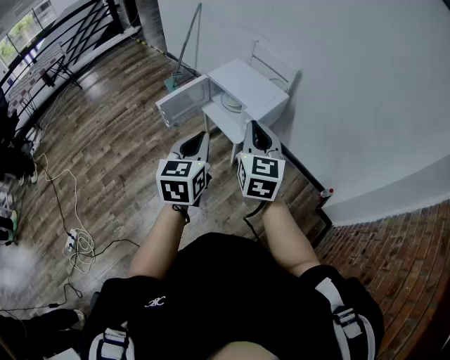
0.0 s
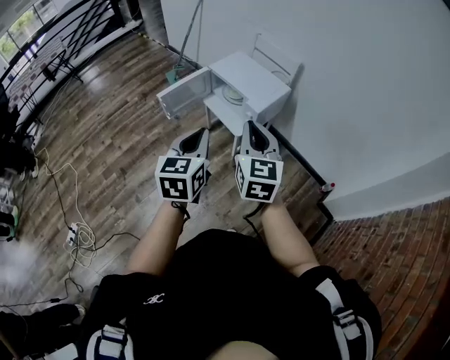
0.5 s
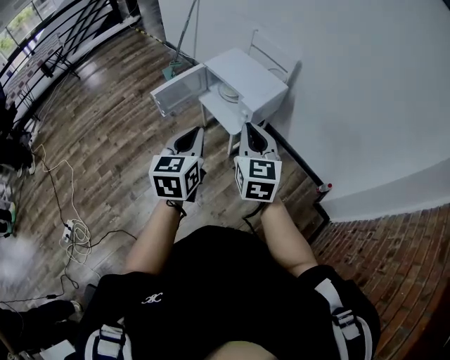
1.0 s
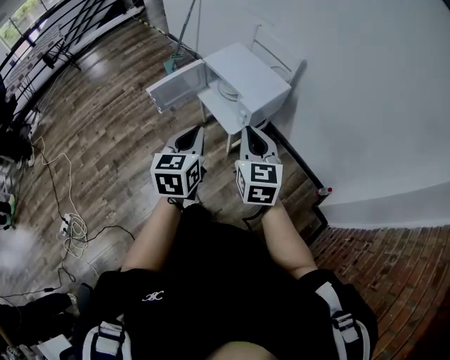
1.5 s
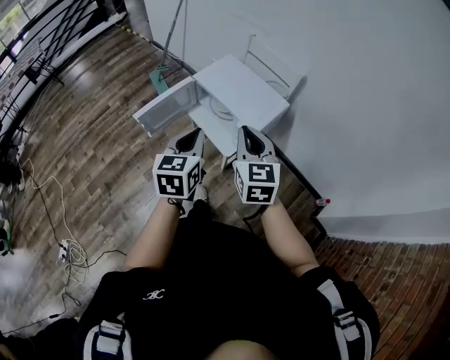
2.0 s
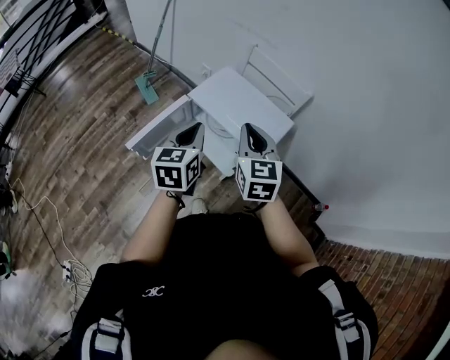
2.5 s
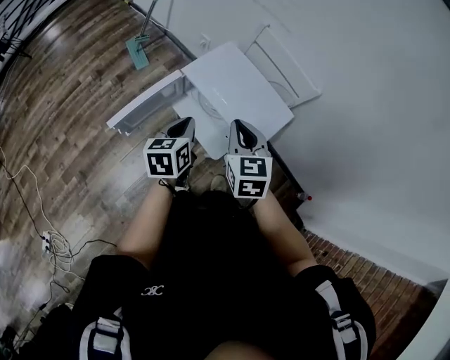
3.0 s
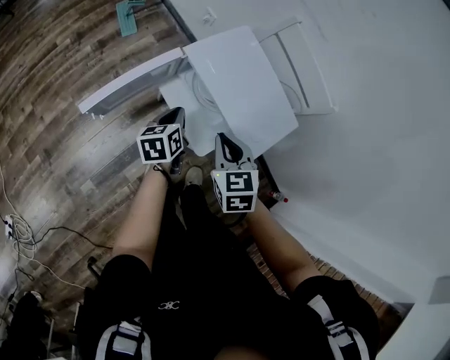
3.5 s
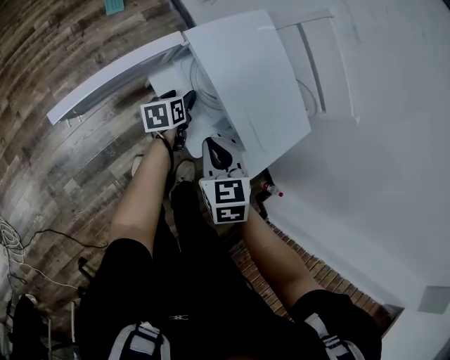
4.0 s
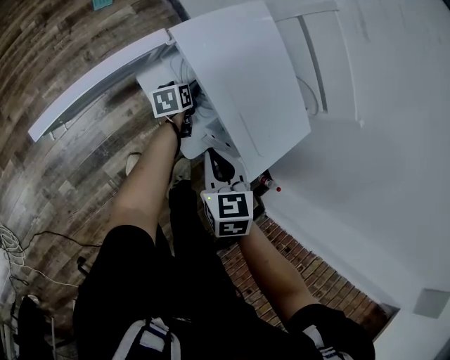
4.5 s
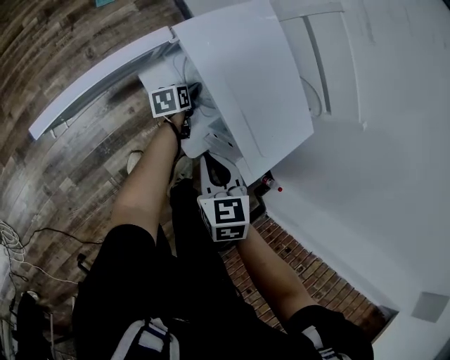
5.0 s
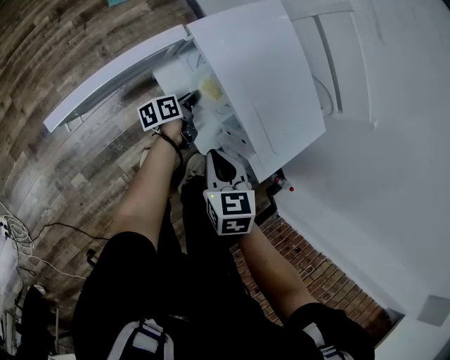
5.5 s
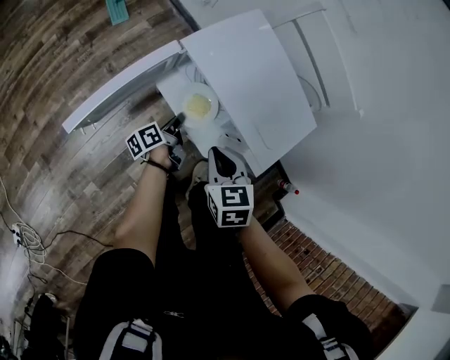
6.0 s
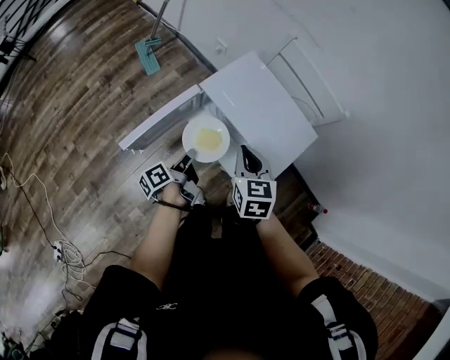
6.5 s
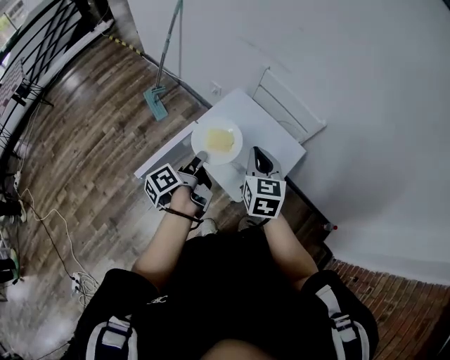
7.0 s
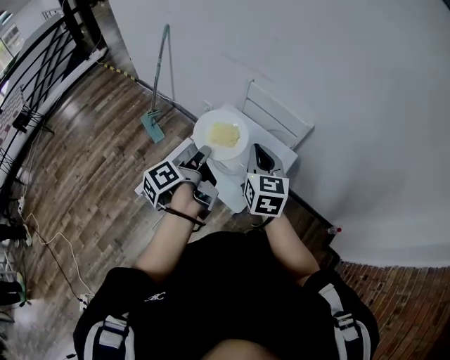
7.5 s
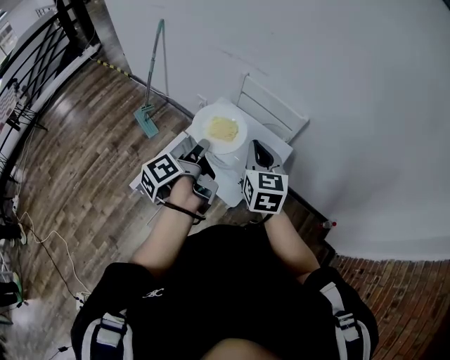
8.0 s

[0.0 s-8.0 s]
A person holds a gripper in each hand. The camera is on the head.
0.0 to 2.0 s: The grippers both shift forward and downward by approximately 20 cm.
2.0 to 4.0 s: The left gripper shifts roughly 60 cm downward and forward, rolls counterclockwise, seen from behind, by approximately 40 degrees, and opens up. Meanwhile the right gripper moves downward and forward, some 35 cm, and tips its fingers downward by about 40 degrees.
4.0 to 6.0 s: The left gripper shifts about 5 cm backward, swivels roughly 30 degrees, and closes.
6.0 to 8.0 s: The two grippers go about 40 cm upward. The right gripper angles its fingers upward, by roughly 30 degrees.

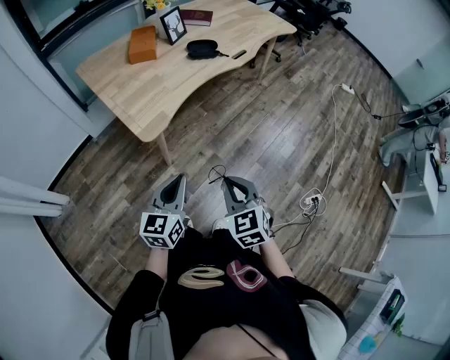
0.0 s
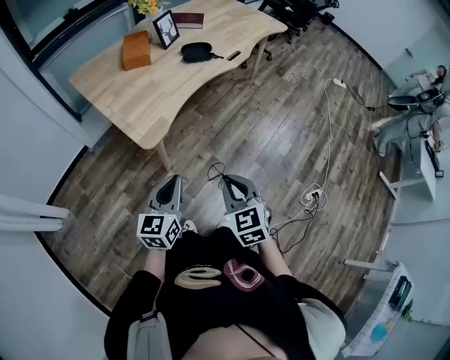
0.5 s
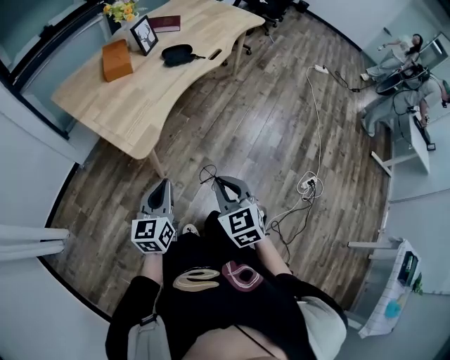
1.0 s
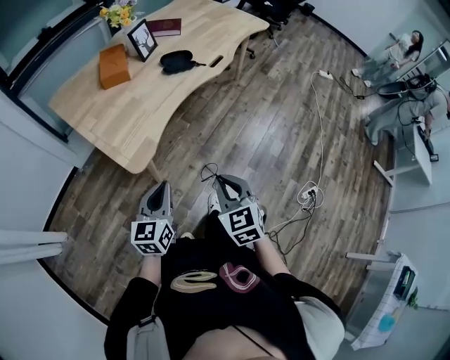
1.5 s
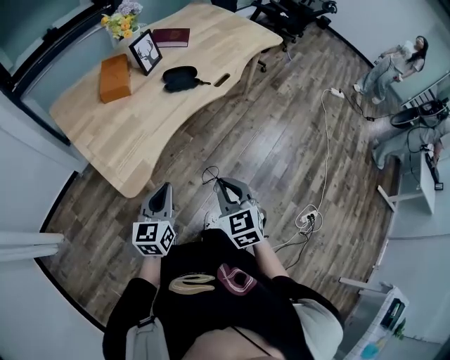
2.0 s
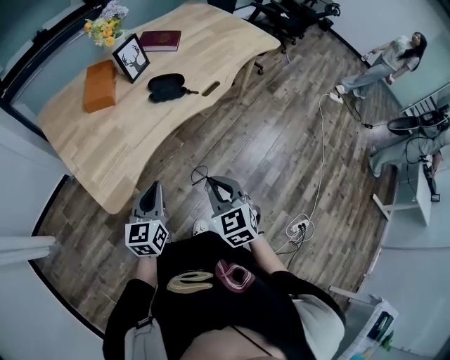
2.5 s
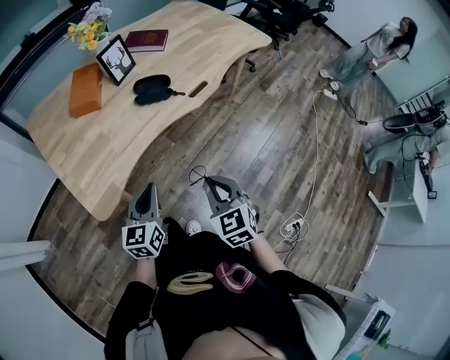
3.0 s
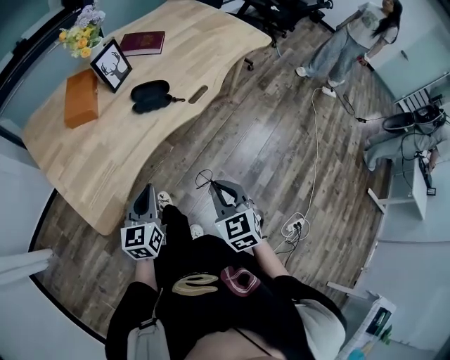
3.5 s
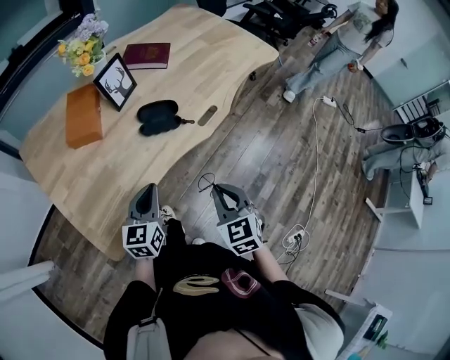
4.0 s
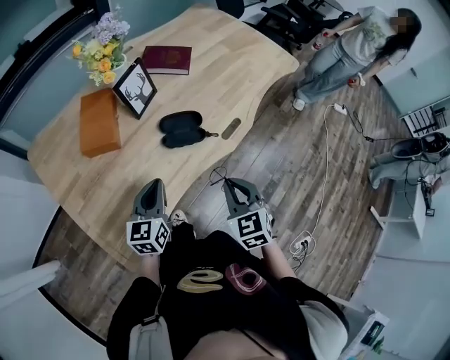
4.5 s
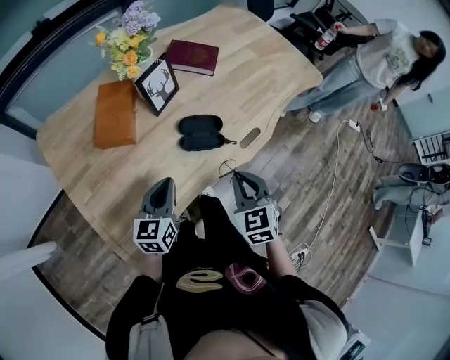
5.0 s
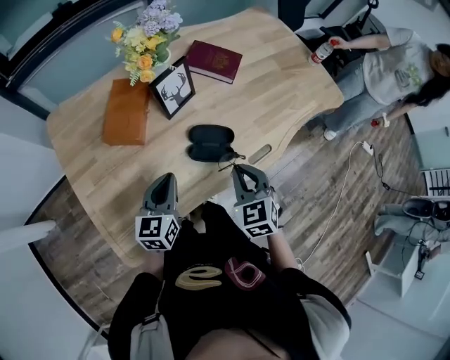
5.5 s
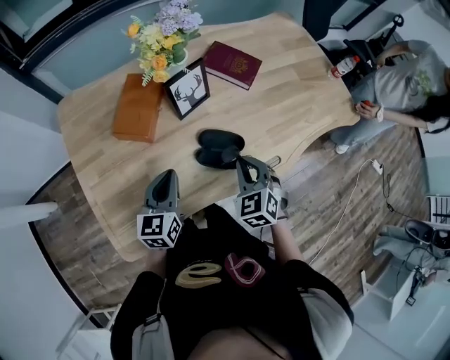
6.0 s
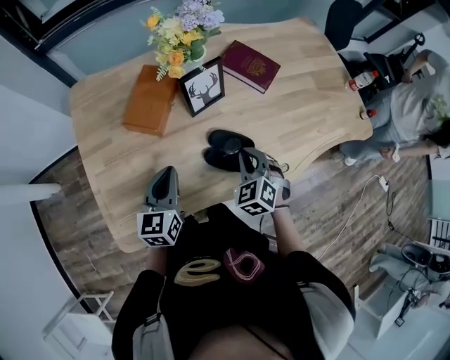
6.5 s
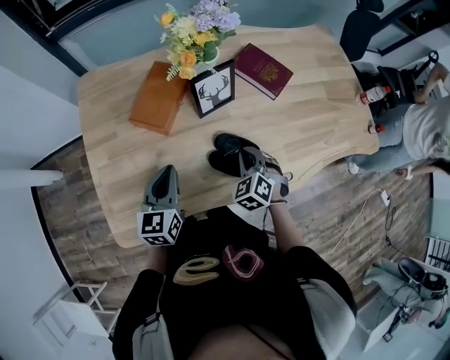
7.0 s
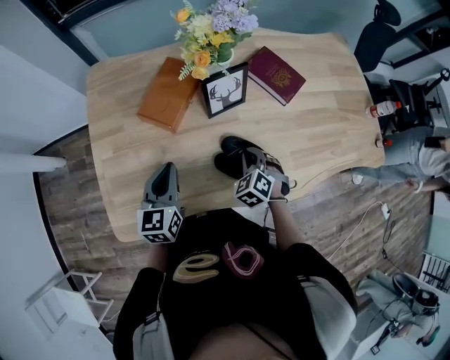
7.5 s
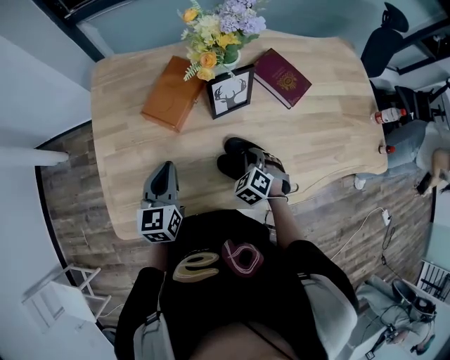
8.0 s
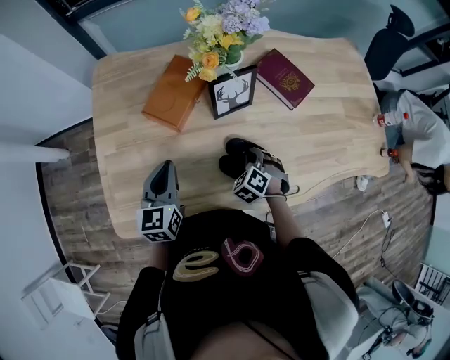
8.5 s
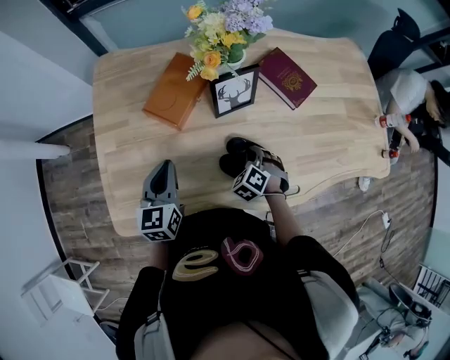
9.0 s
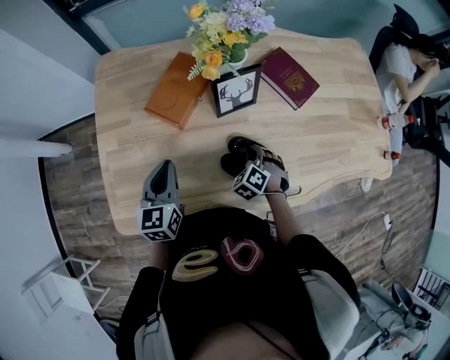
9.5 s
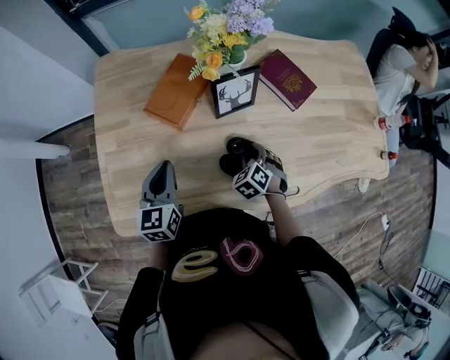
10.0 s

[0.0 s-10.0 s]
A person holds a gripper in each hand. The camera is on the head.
0.0 to 2.0 s: The two grippers go some 20 cm forward.
2.0 to 4.0 s: The grippers both shift forward by approximately 25 cm.
4.0 to 6.0 s: The right gripper travels forward by about 30 cm, and changes its angle by roughly 30 degrees. Meanwhile the left gripper heads forward and to the left, covering roughly 20 cm, and rotates approximately 20 degrees.
6.0 to 8.0 s: The left gripper travels to the left by roughly 5 cm, and rotates roughly 20 degrees. Meanwhile the right gripper goes roughly 15 cm downward and forward, and rotates approximately 30 degrees.
8.0 to 10.0 s: The right gripper opens its fingers.

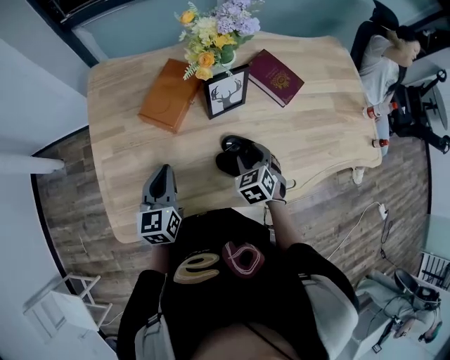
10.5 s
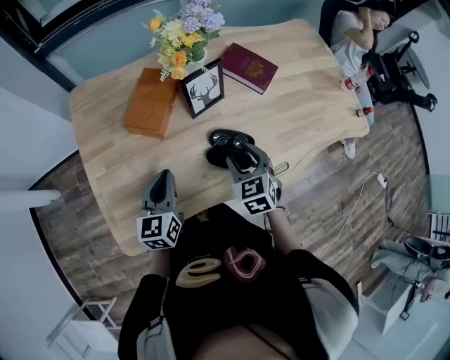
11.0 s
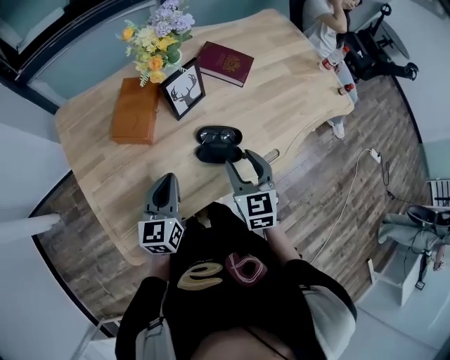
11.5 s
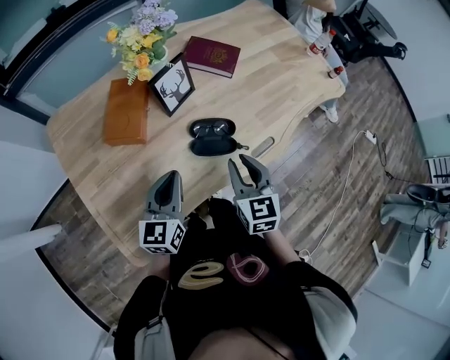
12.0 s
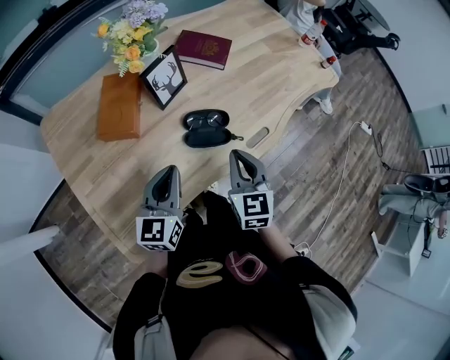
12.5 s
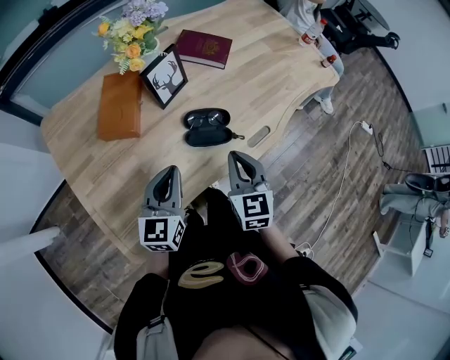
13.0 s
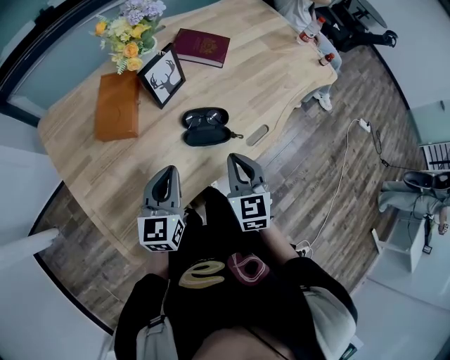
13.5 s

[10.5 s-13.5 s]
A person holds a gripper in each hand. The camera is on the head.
10.5 to 12.0 s: The right gripper is displaced backward and upward by approximately 15 cm, rotates approximately 50 degrees, and closes its fingers; the left gripper travels to the right by some 10 cm, and changes its angle by some 30 degrees.
12.0 to 13.5 s: The right gripper closes up.

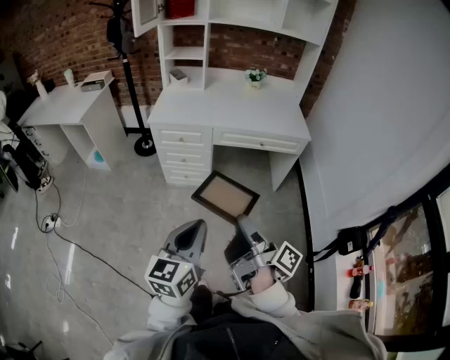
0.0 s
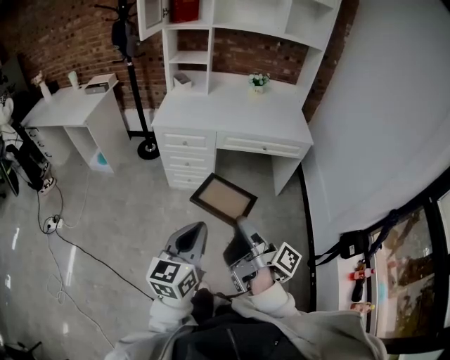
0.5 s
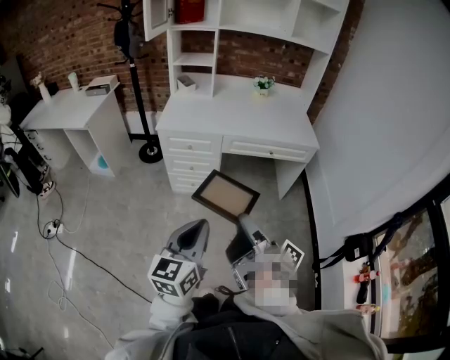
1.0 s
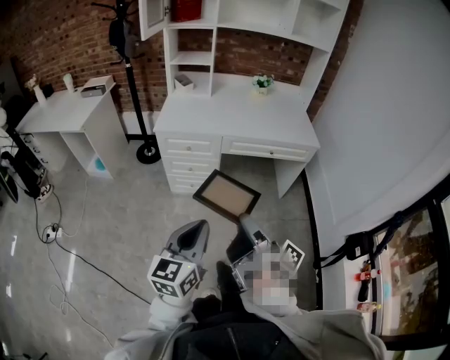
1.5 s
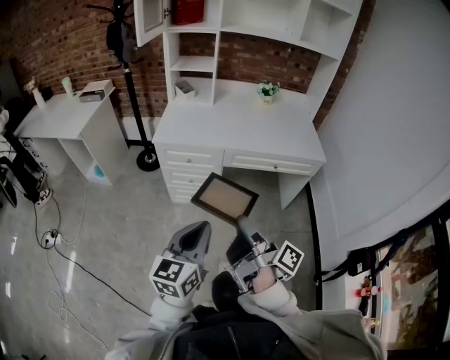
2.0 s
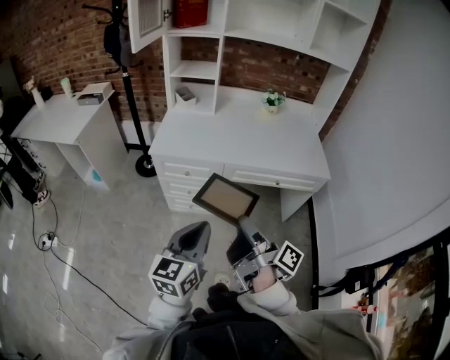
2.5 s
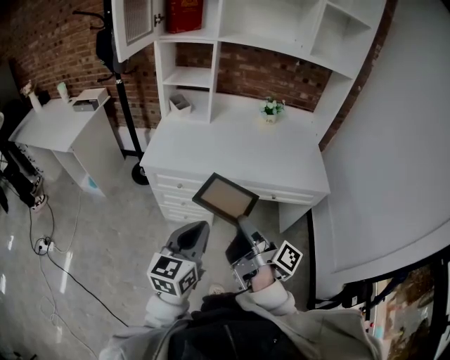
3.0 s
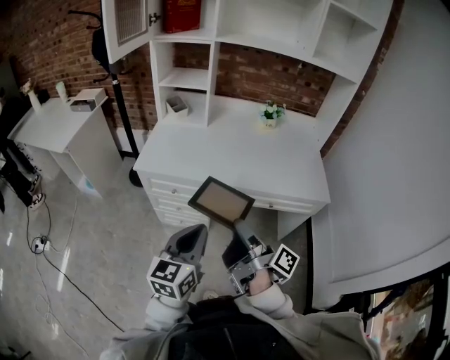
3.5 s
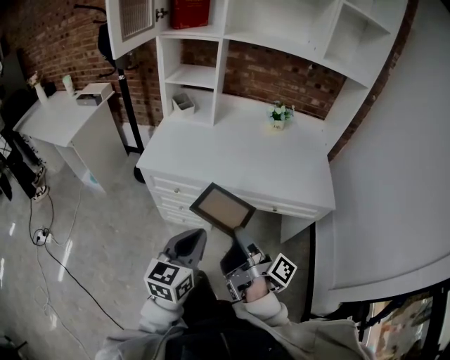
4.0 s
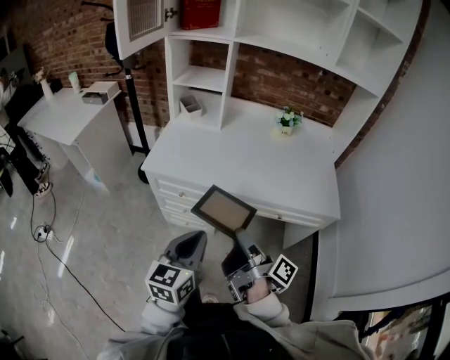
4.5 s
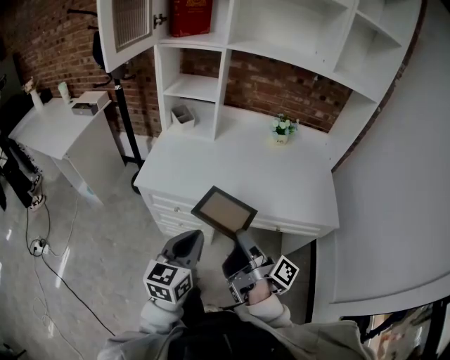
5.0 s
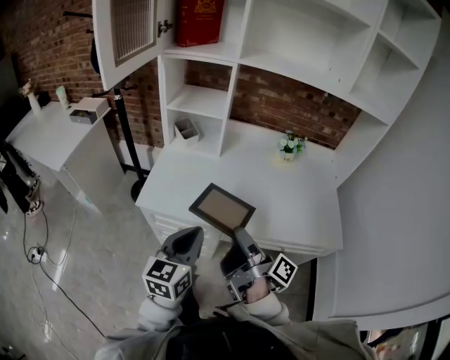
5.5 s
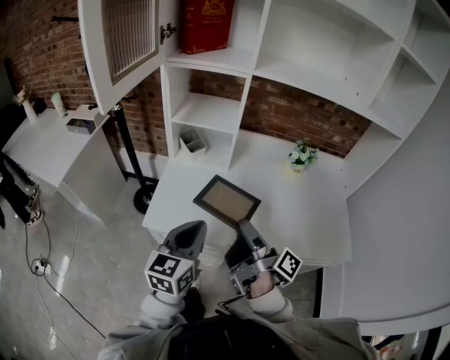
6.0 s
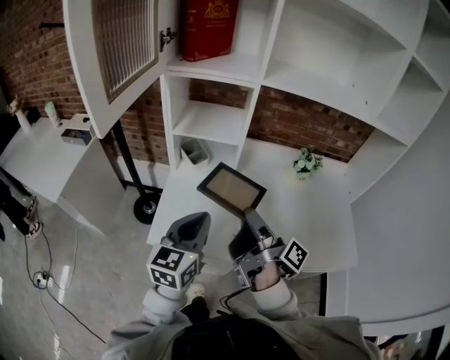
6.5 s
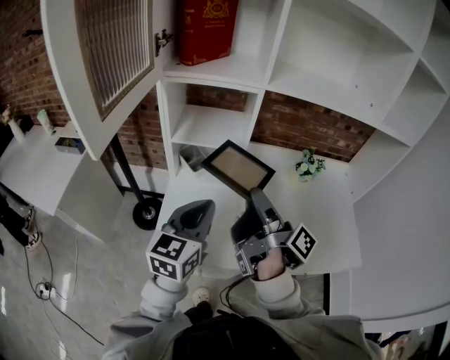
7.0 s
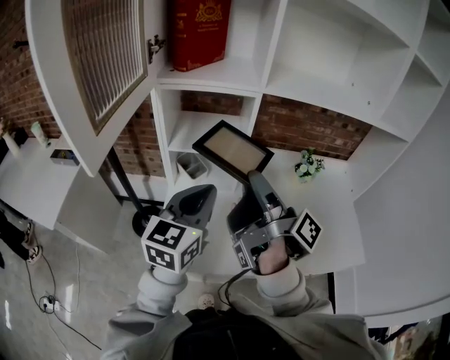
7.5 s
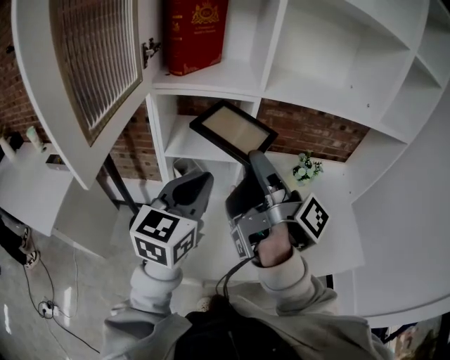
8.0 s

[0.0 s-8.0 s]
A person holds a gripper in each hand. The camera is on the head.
0.0 to 2.0 s: The left gripper shifts by about 15 cm.
2.0 to 4.0 s: The left gripper ends up about 25 cm from where it was.
4.0 to 6.0 s: The left gripper ends up some 30 cm from where it was.
6.0 to 8.0 s: The left gripper changes place by approximately 25 cm.
